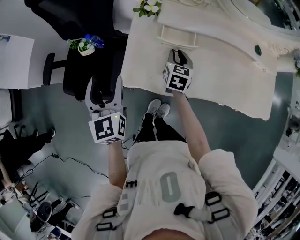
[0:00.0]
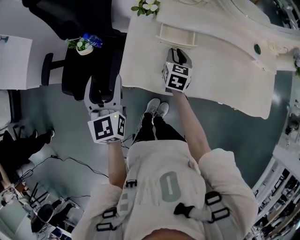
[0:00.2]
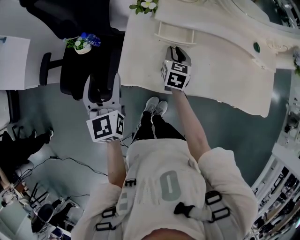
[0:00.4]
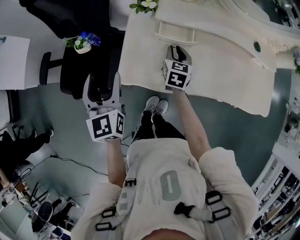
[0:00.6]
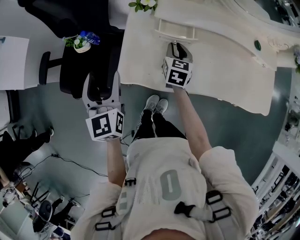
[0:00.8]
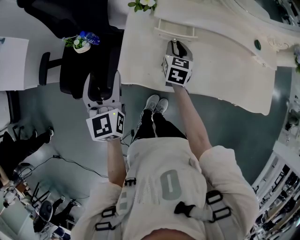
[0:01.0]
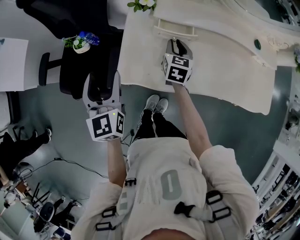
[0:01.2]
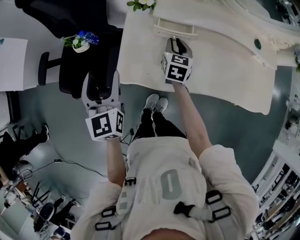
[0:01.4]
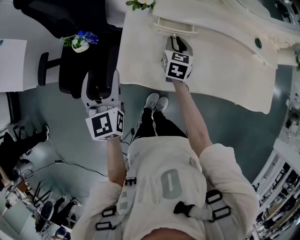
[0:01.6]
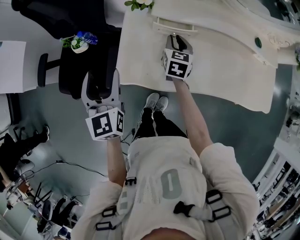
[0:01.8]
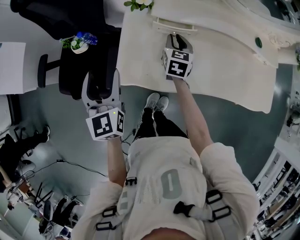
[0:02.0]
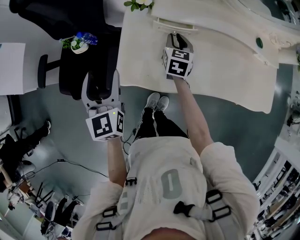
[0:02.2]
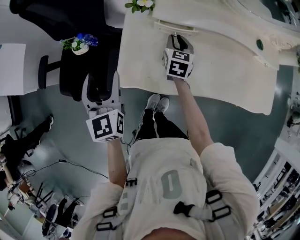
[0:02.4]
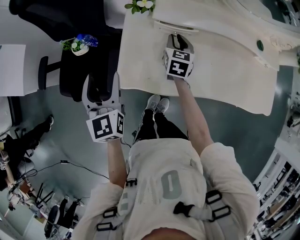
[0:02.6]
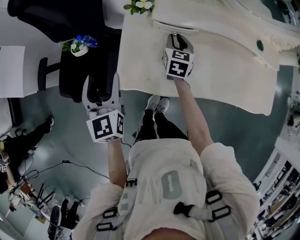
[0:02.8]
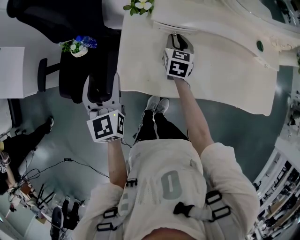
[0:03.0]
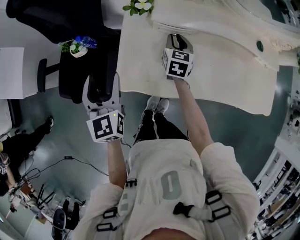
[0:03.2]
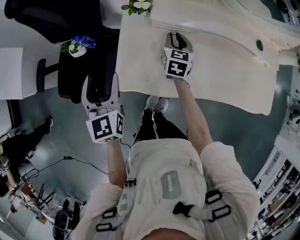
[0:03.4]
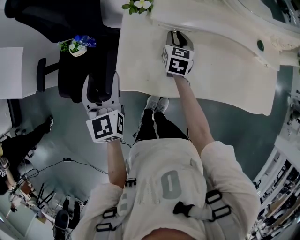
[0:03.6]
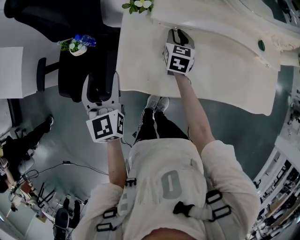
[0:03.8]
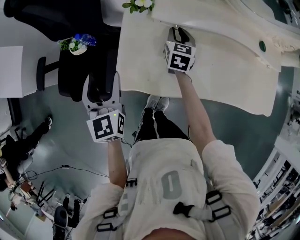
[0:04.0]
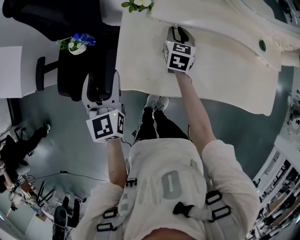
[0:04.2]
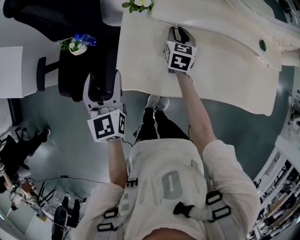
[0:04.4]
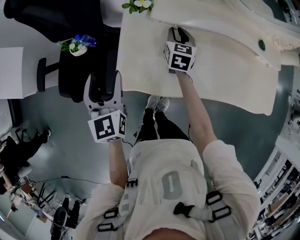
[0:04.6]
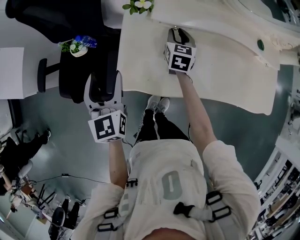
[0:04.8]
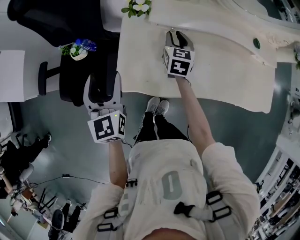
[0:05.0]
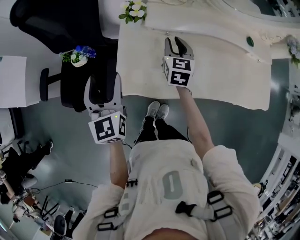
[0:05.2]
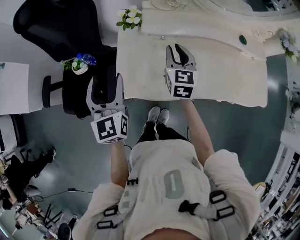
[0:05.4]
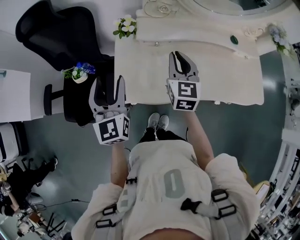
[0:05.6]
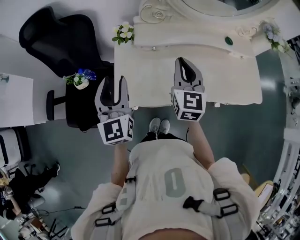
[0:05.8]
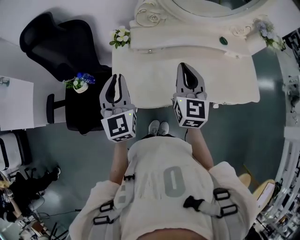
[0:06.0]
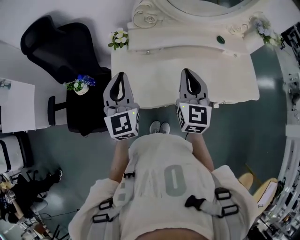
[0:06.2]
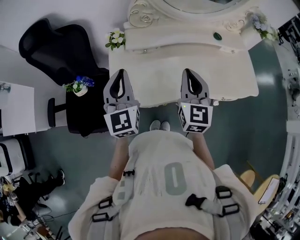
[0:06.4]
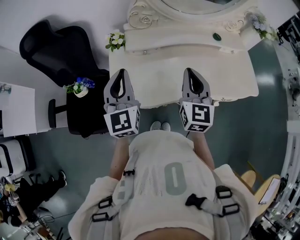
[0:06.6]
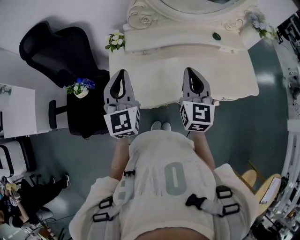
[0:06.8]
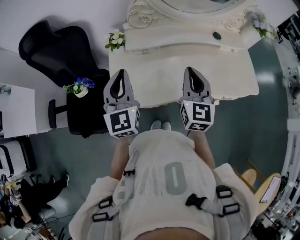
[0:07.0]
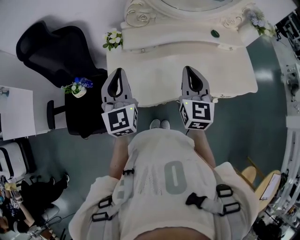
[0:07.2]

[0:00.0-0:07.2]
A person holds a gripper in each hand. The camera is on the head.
0:00.0 to 0:02.8: The grippers stay close to where they were, moving slightly.
0:02.8 to 0:04.4: The grippers move only a little.
0:04.4 to 0:05.8: The left gripper goes about 10 cm upward and to the right; the right gripper is displaced upward and backward by roughly 25 cm, and swivels some 20 degrees.
0:05.8 to 0:07.2: The left gripper heads to the right, covering roughly 5 cm, and closes up. The right gripper is displaced to the right and backward by approximately 10 cm.

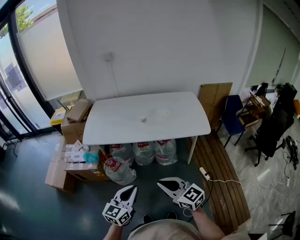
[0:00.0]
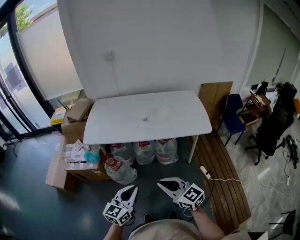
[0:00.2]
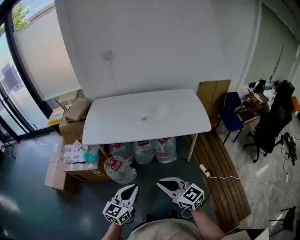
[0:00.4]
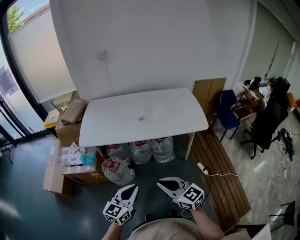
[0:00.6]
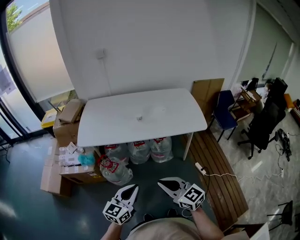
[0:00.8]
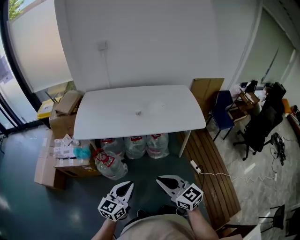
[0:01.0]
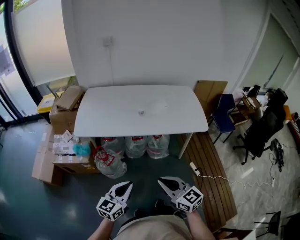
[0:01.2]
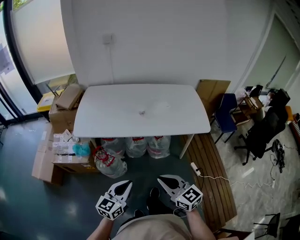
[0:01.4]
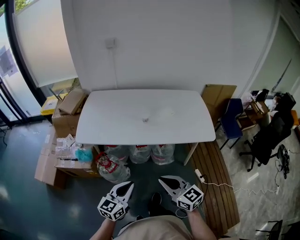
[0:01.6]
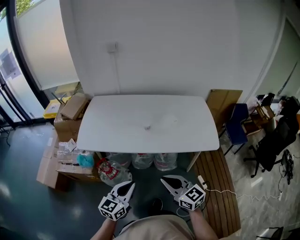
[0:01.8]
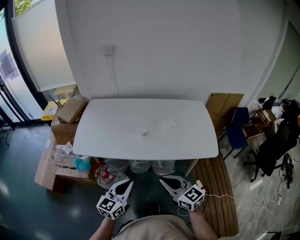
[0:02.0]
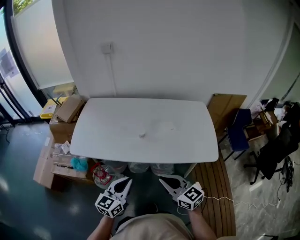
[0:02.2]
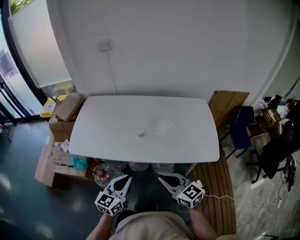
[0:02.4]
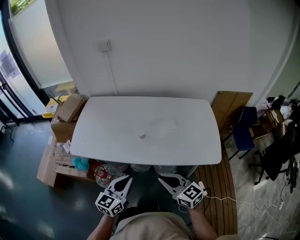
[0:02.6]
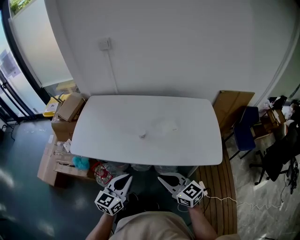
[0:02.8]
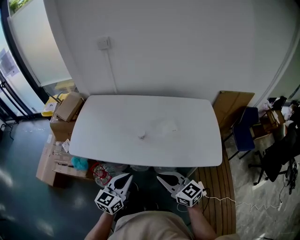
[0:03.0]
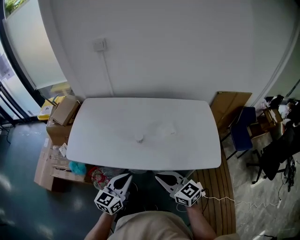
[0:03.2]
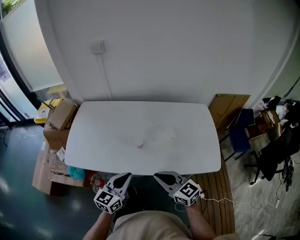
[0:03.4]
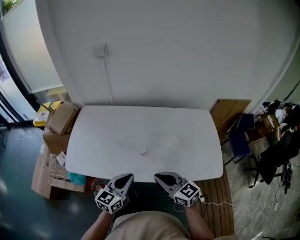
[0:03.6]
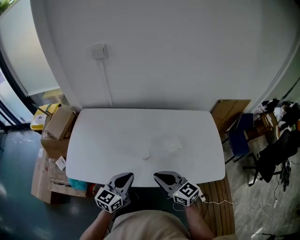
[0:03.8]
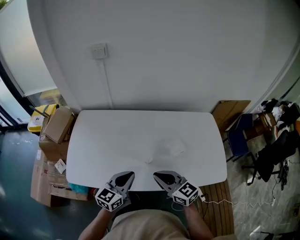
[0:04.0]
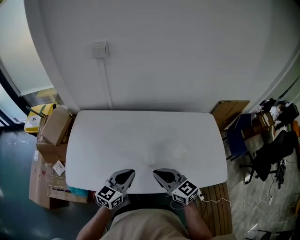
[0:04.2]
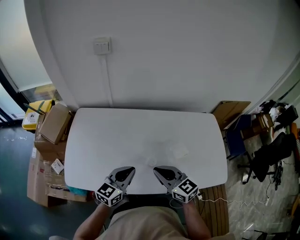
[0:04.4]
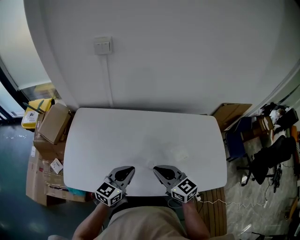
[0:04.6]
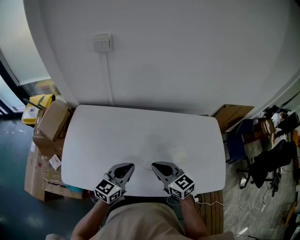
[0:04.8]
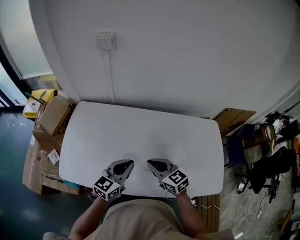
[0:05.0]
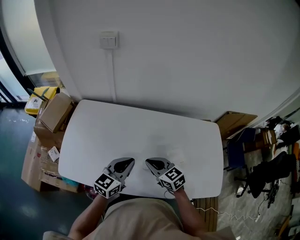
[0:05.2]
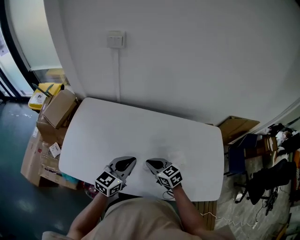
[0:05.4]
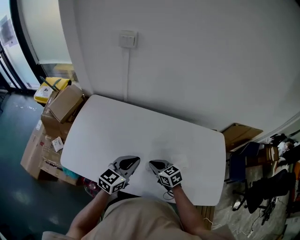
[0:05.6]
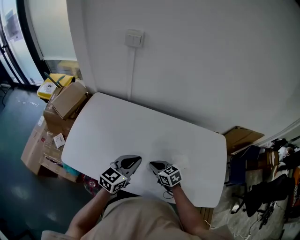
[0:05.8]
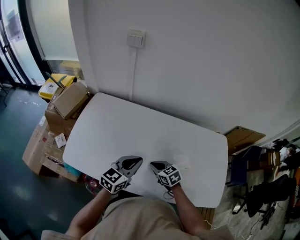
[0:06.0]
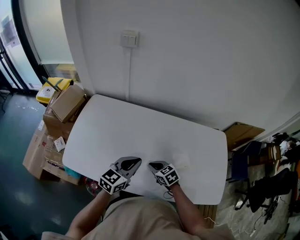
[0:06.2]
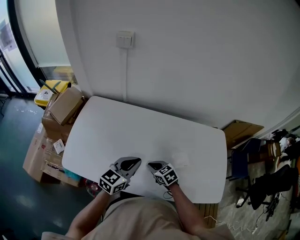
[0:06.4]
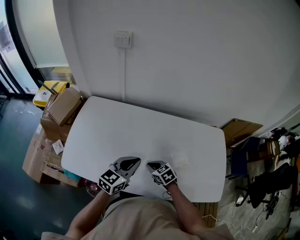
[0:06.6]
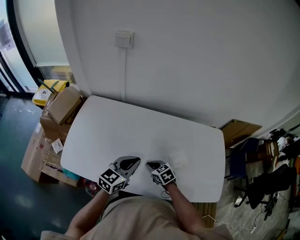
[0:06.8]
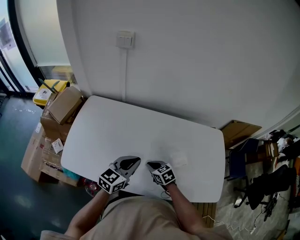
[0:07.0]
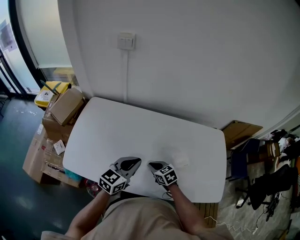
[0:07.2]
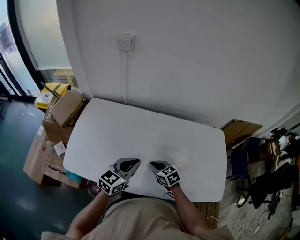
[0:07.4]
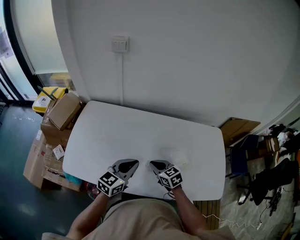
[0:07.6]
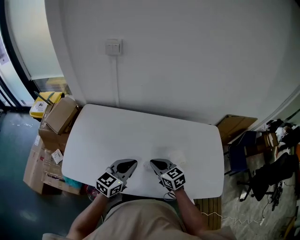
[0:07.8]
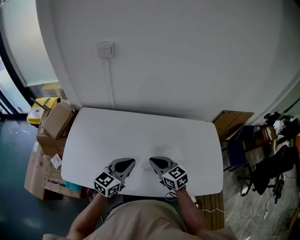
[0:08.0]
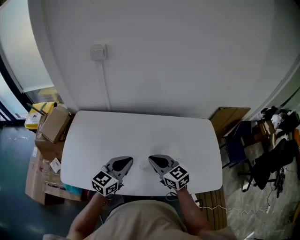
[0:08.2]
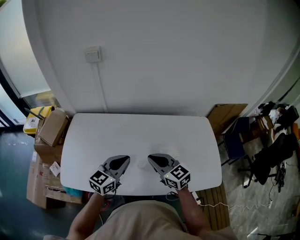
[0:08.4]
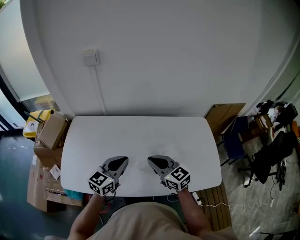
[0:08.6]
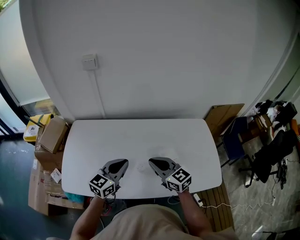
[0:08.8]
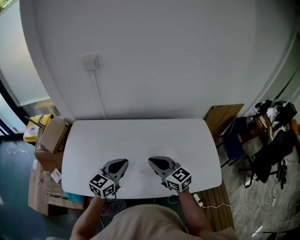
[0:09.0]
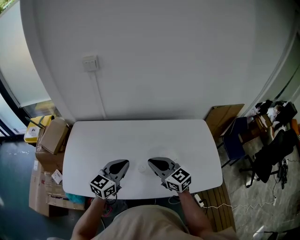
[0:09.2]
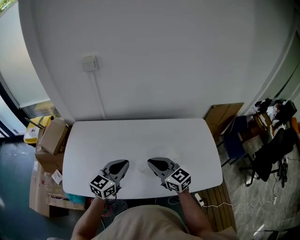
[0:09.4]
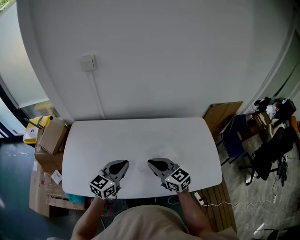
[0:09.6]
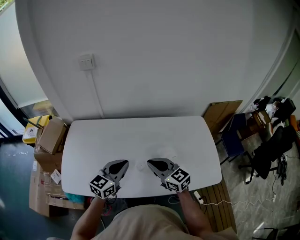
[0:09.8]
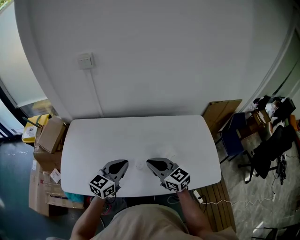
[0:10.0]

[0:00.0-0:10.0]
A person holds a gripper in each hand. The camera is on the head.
0:00.0 to 0:01.4: Both grippers travel together forward, approximately 5 cm.
0:01.4 to 0:02.8: Both grippers travel together forward and to the right, some 25 cm.
0:02.8 to 0:04.2: Both grippers travel together forward, approximately 25 cm.
0:04.2 to 0:05.8: The right gripper travels downward and forward by some 20 cm, and rotates approximately 30 degrees. The left gripper moves forward, about 5 cm.
0:05.8 to 0:07.2: The grippers stay close to where they were, moving slightly.
0:07.2 to 0:08.6: The right gripper is displaced upward by some 20 cm, and tips its fingers upward by approximately 30 degrees.
0:08.6 to 0:10.0: The grippers make only small movements.

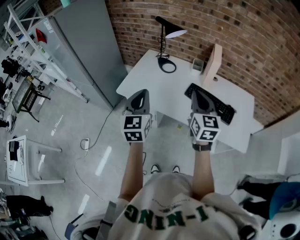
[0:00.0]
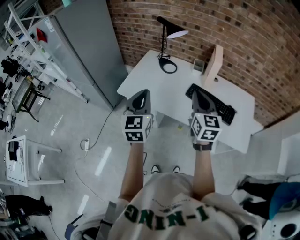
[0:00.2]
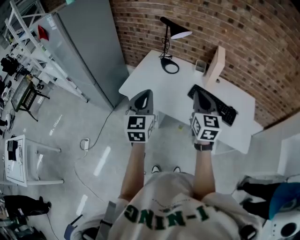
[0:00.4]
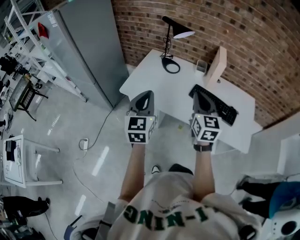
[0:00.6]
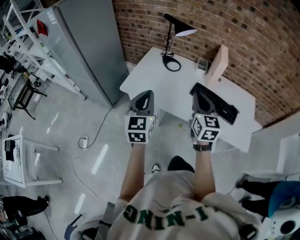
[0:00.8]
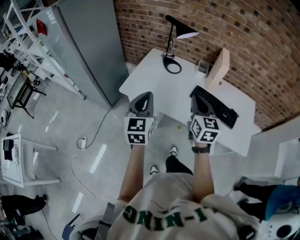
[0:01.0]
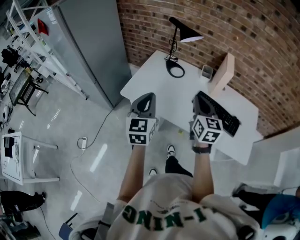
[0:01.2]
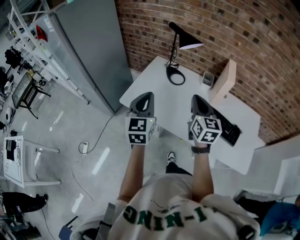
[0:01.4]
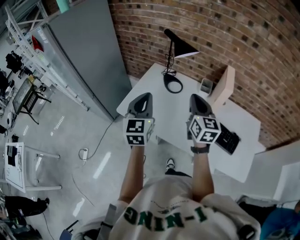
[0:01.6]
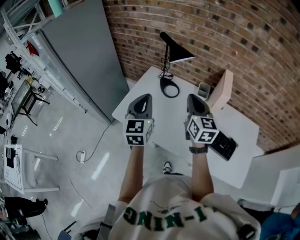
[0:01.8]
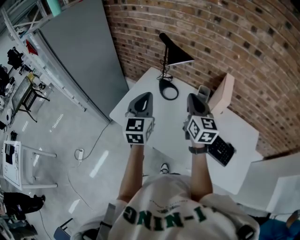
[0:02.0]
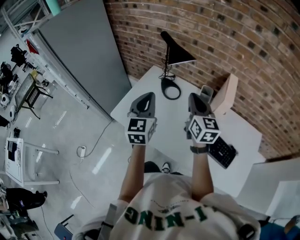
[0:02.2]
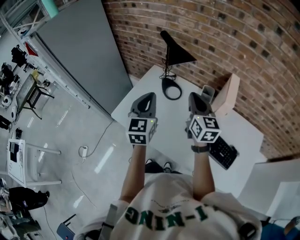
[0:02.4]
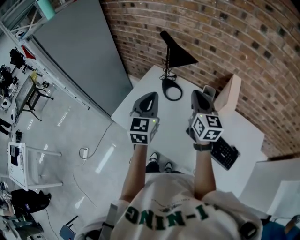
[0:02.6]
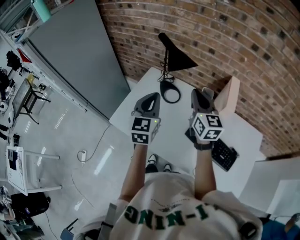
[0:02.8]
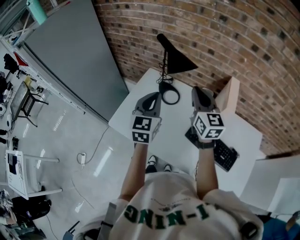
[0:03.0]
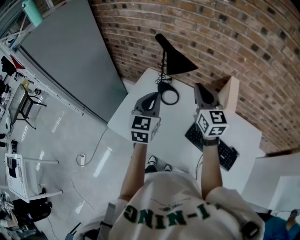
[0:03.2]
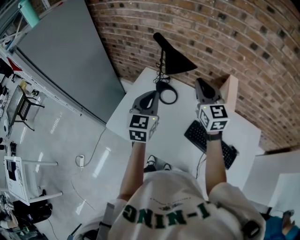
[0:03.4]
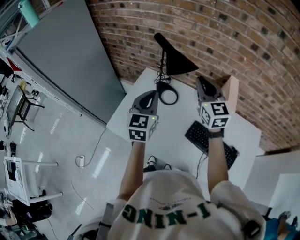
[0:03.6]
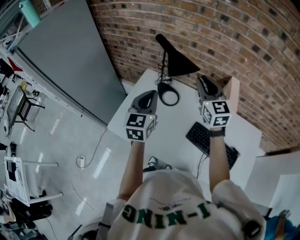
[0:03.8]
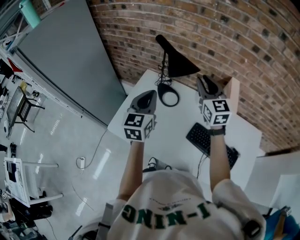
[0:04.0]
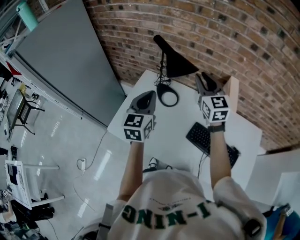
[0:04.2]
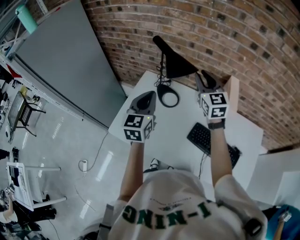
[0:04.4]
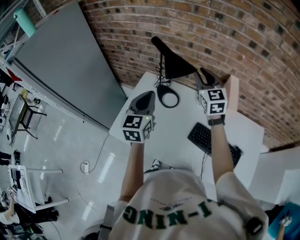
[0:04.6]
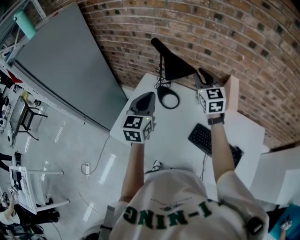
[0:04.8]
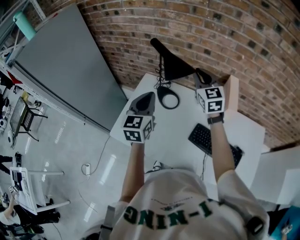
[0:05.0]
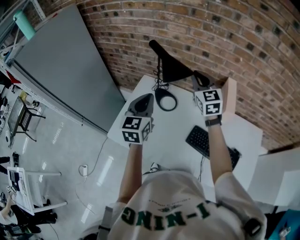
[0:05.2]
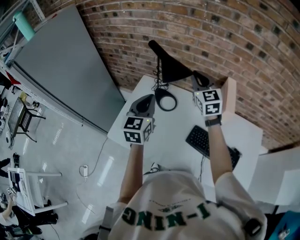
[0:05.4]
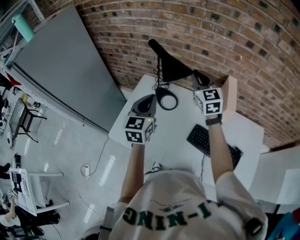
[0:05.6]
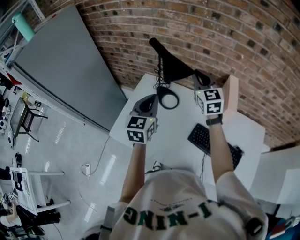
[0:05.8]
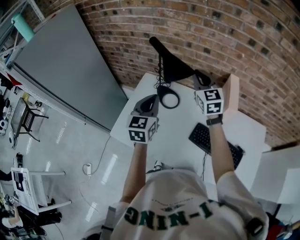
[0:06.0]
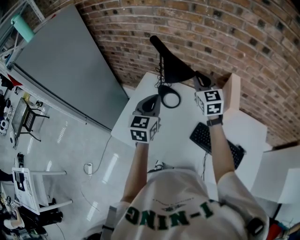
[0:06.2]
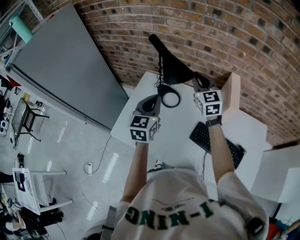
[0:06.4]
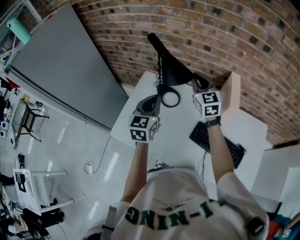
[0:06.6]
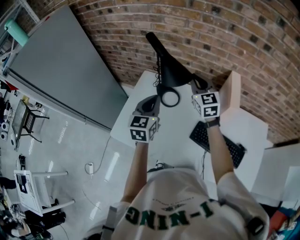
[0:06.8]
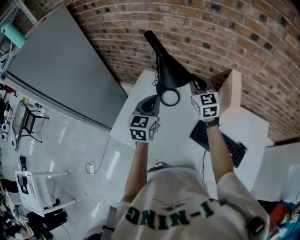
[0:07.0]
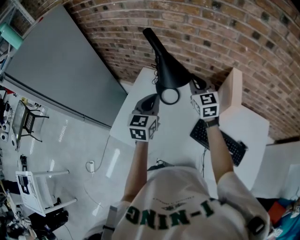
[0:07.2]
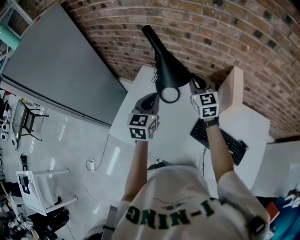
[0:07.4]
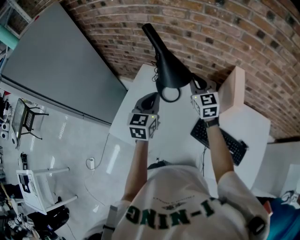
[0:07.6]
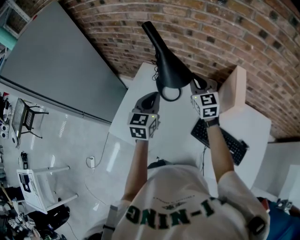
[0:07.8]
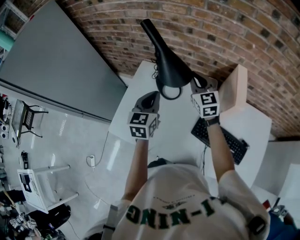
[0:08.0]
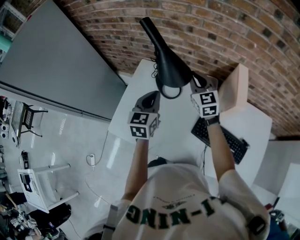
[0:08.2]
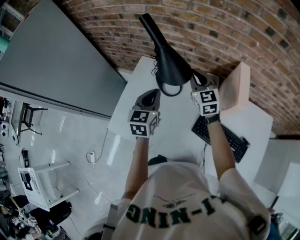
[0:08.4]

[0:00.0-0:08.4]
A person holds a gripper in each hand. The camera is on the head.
0:00.0 to 0:01.4: The right gripper moves forward and to the left, roughly 15 cm. Meanwhile the left gripper shifts about 10 cm forward.
0:01.4 to 0:02.8: The right gripper travels forward by some 20 cm. Meanwhile the left gripper shifts approximately 20 cm forward and to the right.
0:02.8 to 0:04.2: The right gripper heads forward, covering roughly 10 cm. Meanwhile the left gripper moves forward, some 5 cm.
0:04.2 to 0:05.6: The grippers move only a little.
0:05.6 to 0:07.0: The right gripper travels downward by about 5 cm. Meanwhile the left gripper moves some 5 cm.
0:07.0 to 0:08.4: The grippers both shift downward by about 5 cm.
